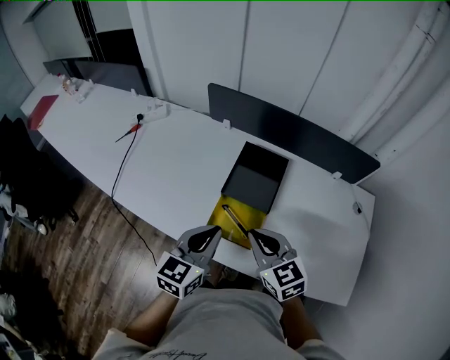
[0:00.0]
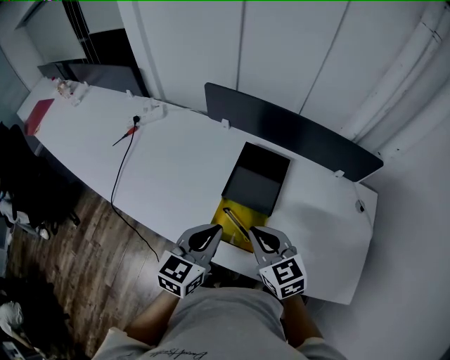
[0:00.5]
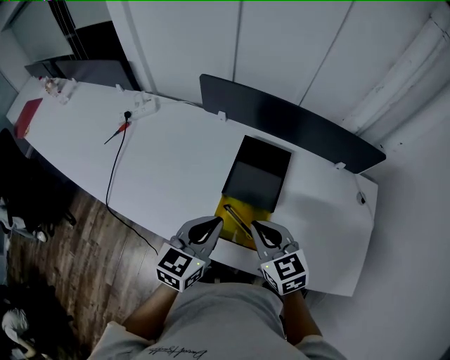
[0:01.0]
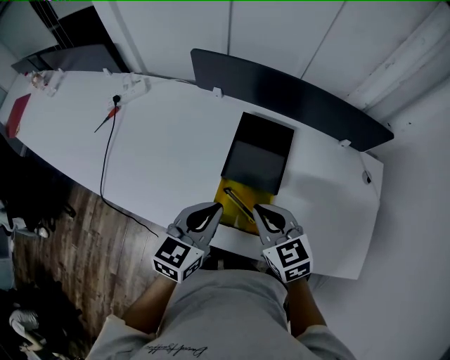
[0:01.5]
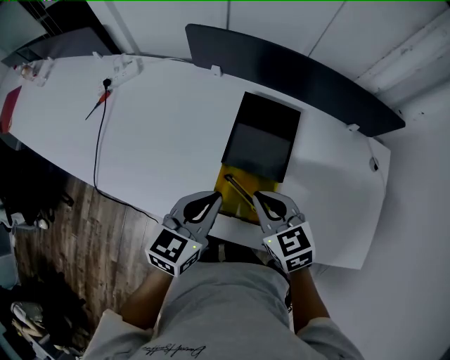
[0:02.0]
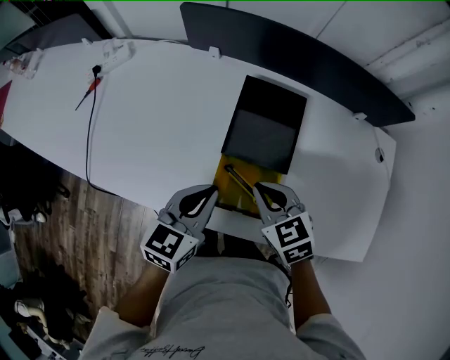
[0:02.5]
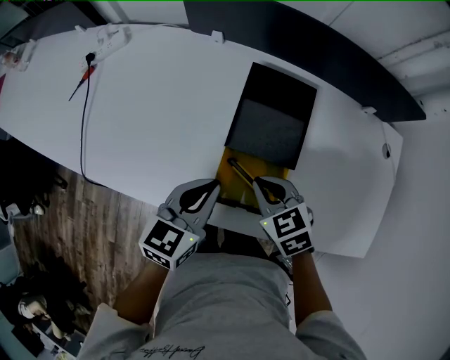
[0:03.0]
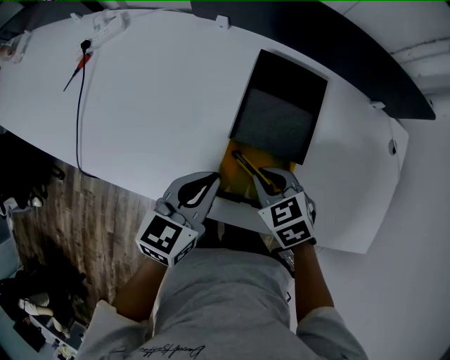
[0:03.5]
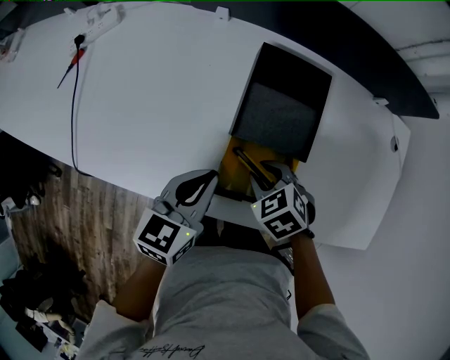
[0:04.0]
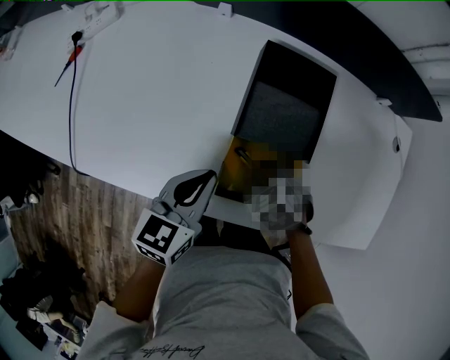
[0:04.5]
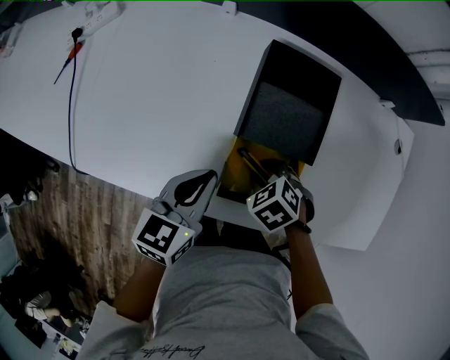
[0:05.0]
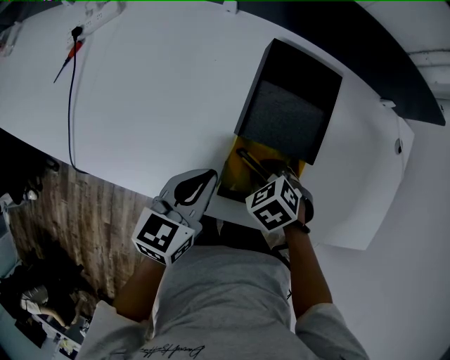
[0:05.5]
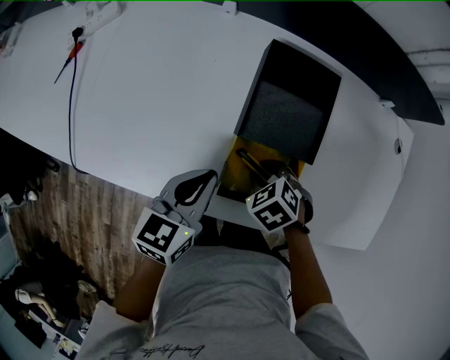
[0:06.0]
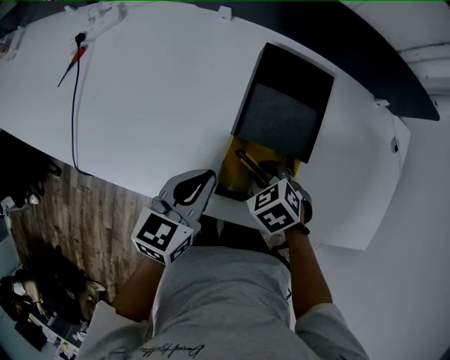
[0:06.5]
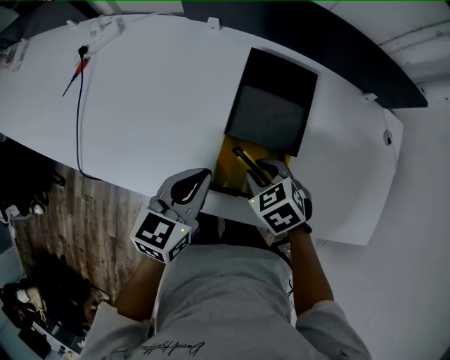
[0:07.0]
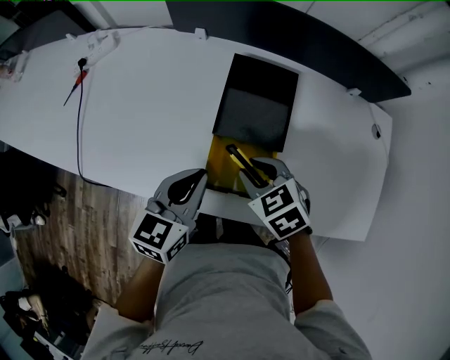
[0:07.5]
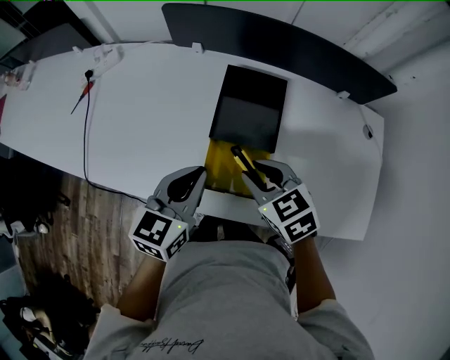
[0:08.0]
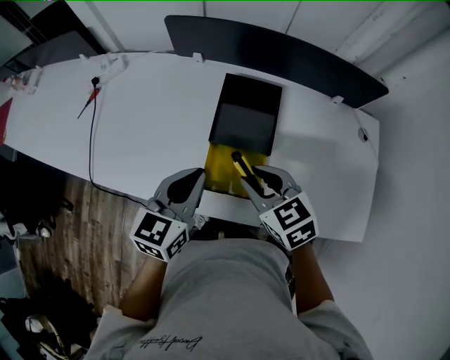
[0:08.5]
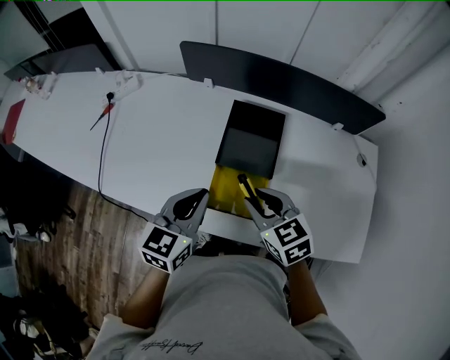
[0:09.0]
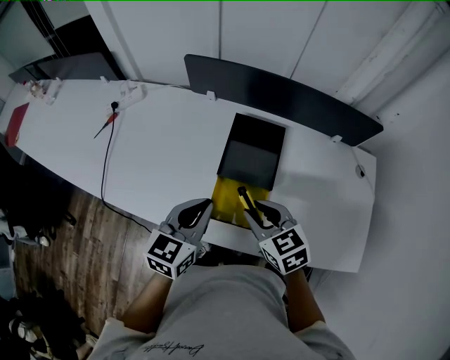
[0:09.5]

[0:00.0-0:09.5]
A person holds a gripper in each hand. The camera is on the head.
0:00.0 to 0:02.0: The left gripper heads forward and downward, covering approximately 10 cm; the right gripper is displaced downward and forward by some 10 cm.
0:02.0 to 0:04.0: The left gripper moves downward, about 10 cm; the right gripper goes about 15 cm downward, swivels roughly 30 degrees, and opens its fingers.
0:04.0 to 0:05.5: The grippers move only a little.
0:05.5 to 0:07.5: The left gripper heads upward, covering roughly 5 cm. The right gripper travels upward by some 15 cm, and swivels roughly 20 degrees.
0:07.5 to 0:09.5: The two grippers go approximately 10 cm upward.

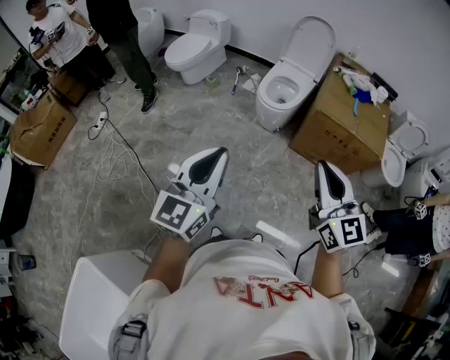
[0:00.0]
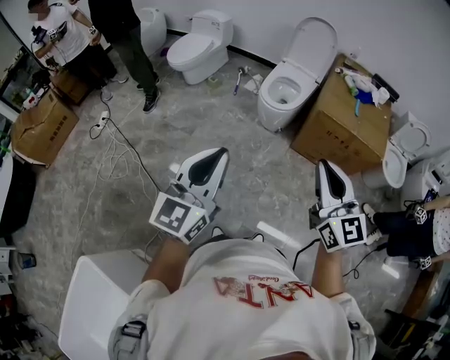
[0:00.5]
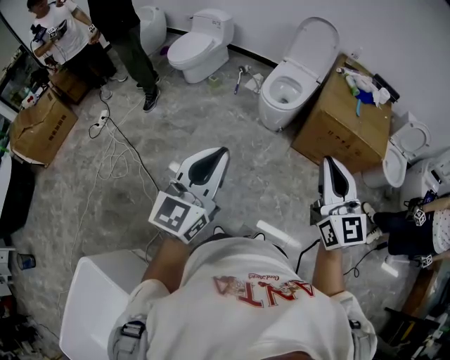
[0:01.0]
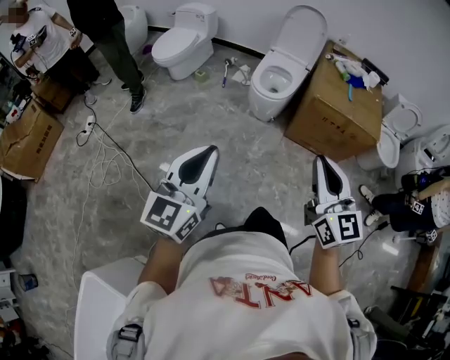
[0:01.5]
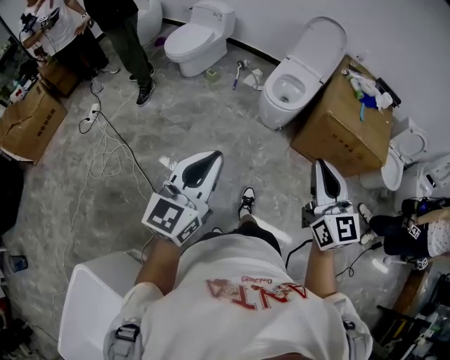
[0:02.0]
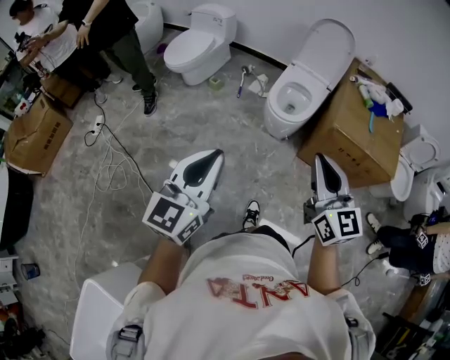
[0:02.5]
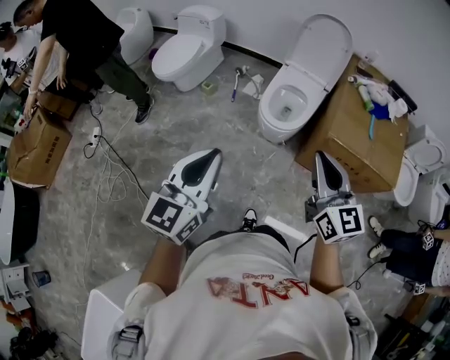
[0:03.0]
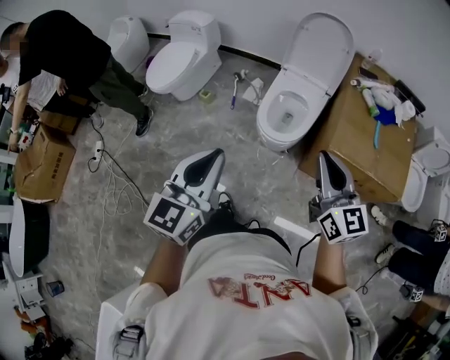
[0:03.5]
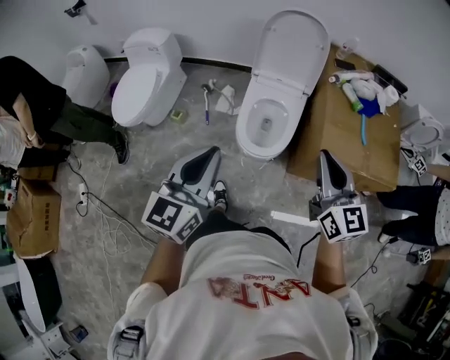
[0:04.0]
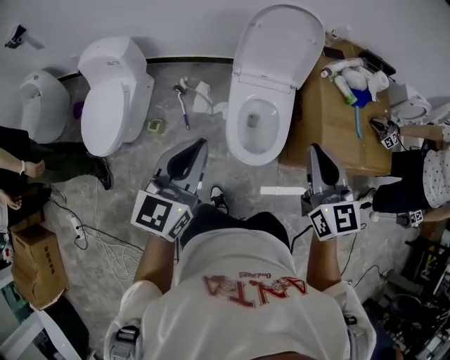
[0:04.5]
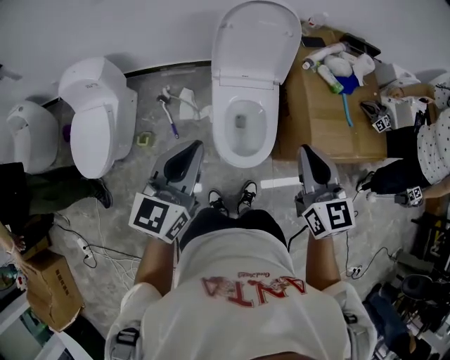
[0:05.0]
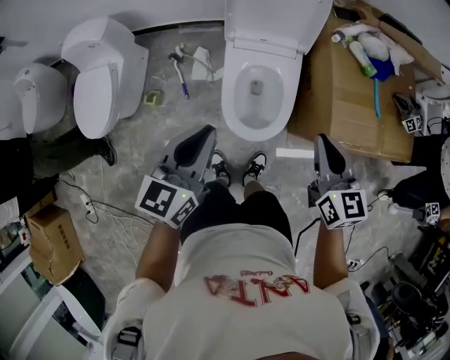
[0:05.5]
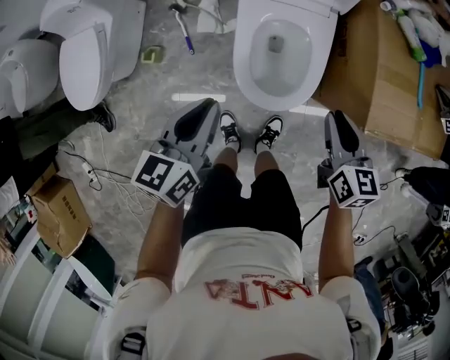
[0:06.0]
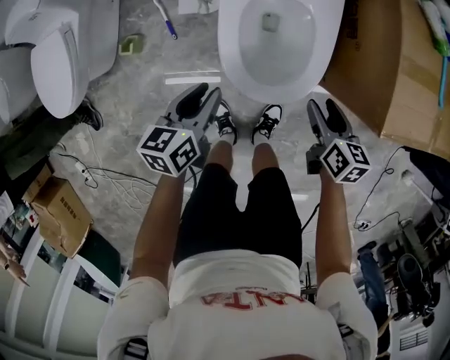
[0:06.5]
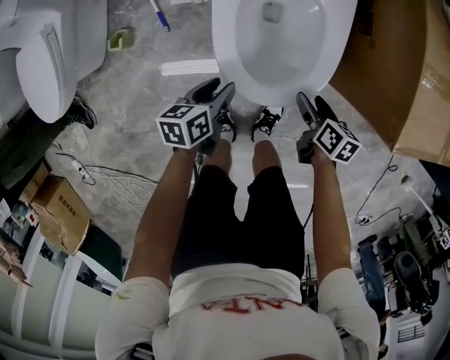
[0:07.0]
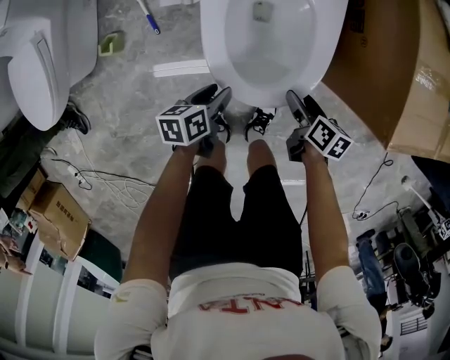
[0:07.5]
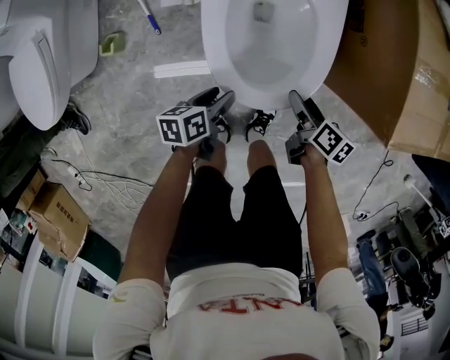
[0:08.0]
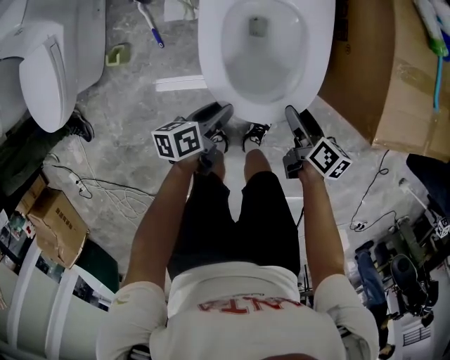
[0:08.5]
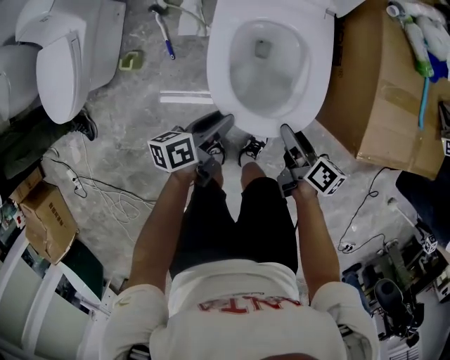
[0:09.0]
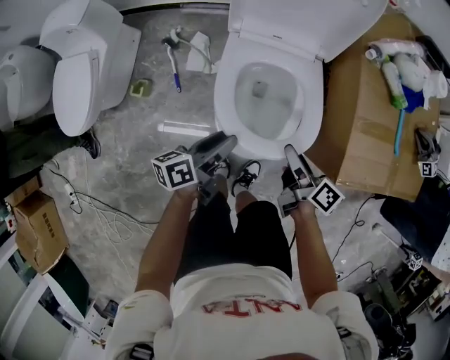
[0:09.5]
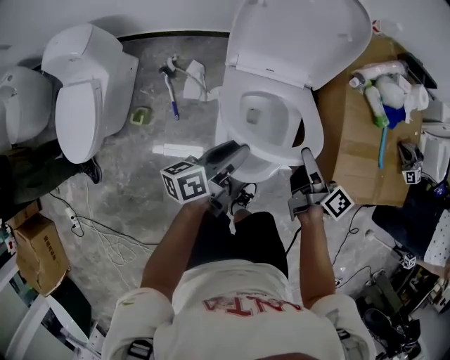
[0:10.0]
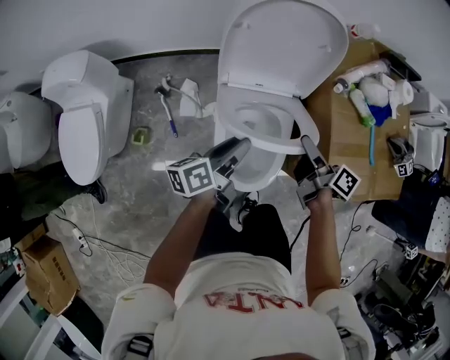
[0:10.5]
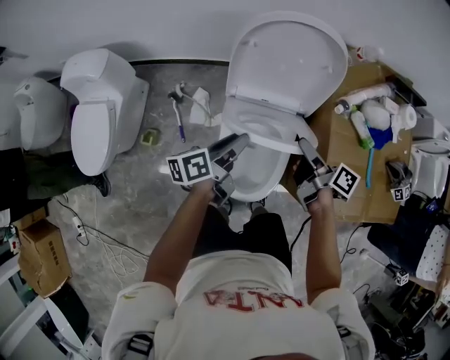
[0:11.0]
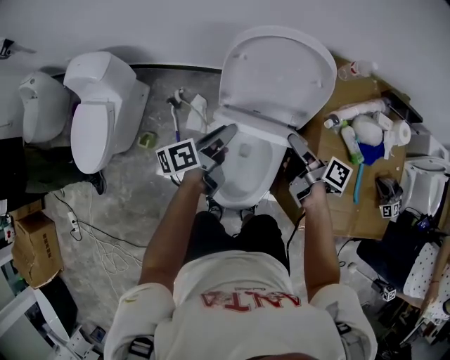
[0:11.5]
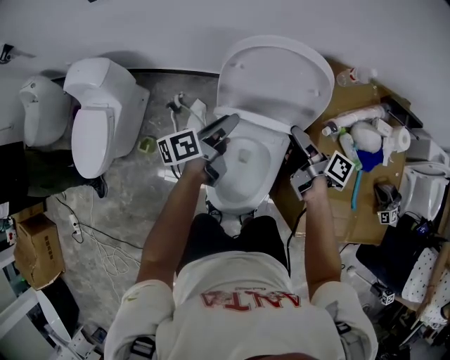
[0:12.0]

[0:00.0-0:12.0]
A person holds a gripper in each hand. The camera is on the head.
0:00.0 to 0:02.0: The left gripper travels to the left by some 10 cm. The right gripper shifts roughly 10 cm to the left and forward.
0:02.0 to 0:04.0: Both grippers are carried forward, some 50 cm.
0:04.0 to 0:06.0: The two grippers go roughly 35 cm downward and forward. The left gripper turns by some 30 degrees, while the right gripper swivels some 40 degrees.
0:06.0 to 0:08.0: The two grippers go some 35 cm downward. The right gripper rolls clockwise, seen from behind, by about 40 degrees, and opens. The left gripper rotates some 40 degrees, and opens up.
0:08.0 to 0:10.0: The grippers both shift upward and forward by some 35 cm. The right gripper points its fingers approximately 30 degrees further upward. The left gripper points its fingers some 30 degrees further upward.
0:10.0 to 0:12.0: The right gripper moves forward, about 20 cm. Meanwhile the left gripper goes approximately 20 cm forward and upward.

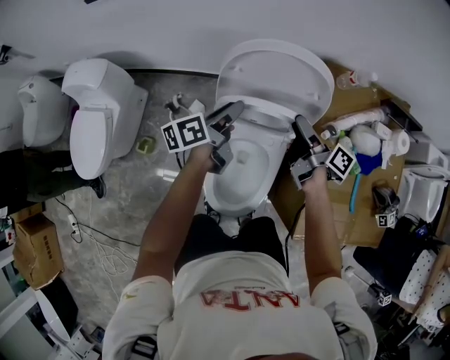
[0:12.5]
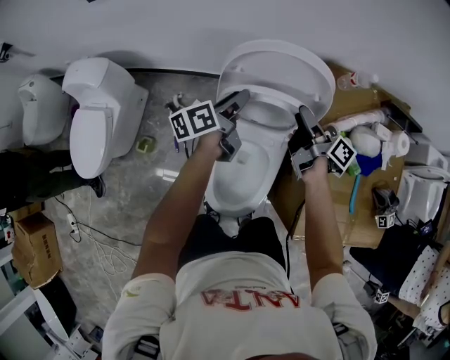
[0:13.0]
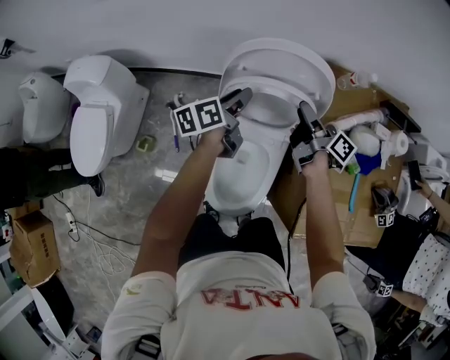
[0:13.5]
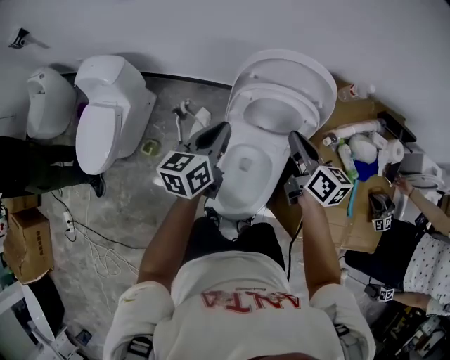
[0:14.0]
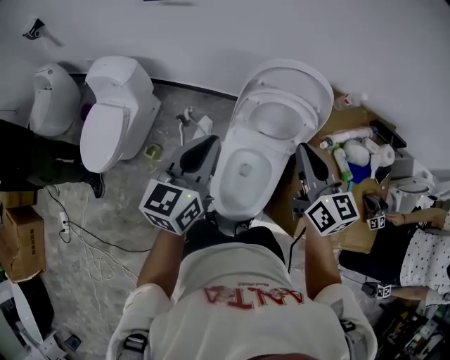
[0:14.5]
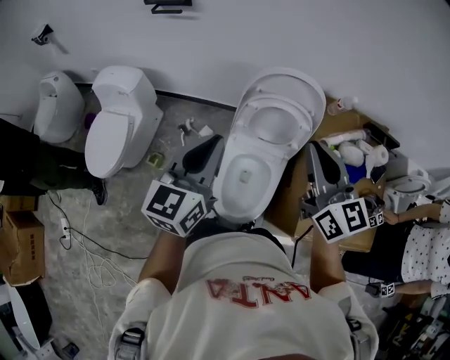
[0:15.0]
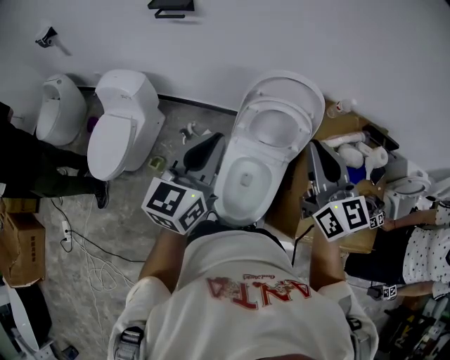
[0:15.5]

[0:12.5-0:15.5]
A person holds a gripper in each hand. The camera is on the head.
0:12.5 to 0:14.0: The left gripper moves backward, upward and to the left, roughly 15 cm, swivels roughly 30 degrees, and closes. Meanwhile the right gripper is displaced upward, backward and to the left by roughly 10 cm, rotates around the line of its fingers by approximately 40 degrees, counterclockwise from behind, and closes its fingers.
0:14.0 to 0:15.5: The grippers both shift upward and backward by about 25 cm. The right gripper turns by roughly 40 degrees; the left gripper rotates some 20 degrees.

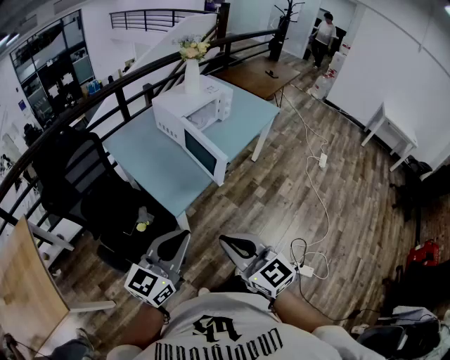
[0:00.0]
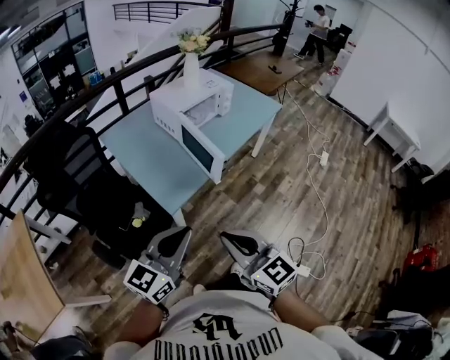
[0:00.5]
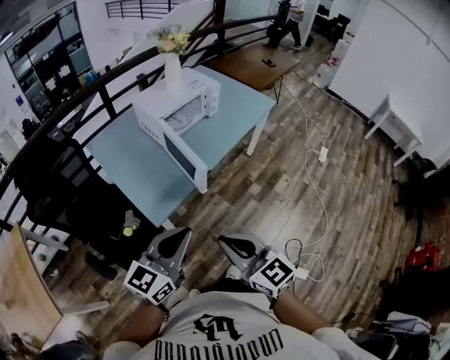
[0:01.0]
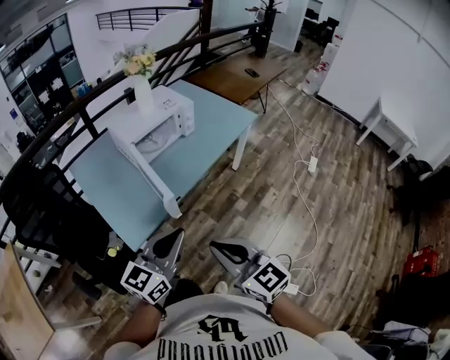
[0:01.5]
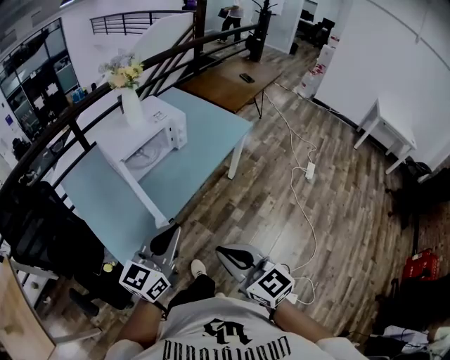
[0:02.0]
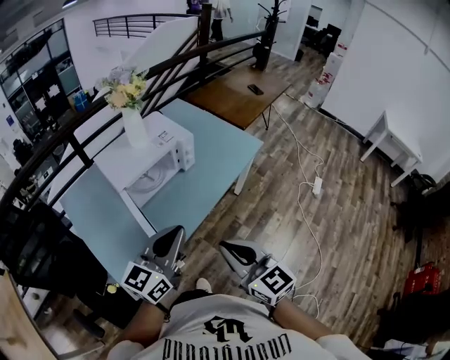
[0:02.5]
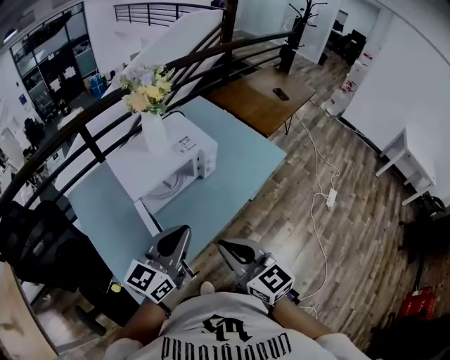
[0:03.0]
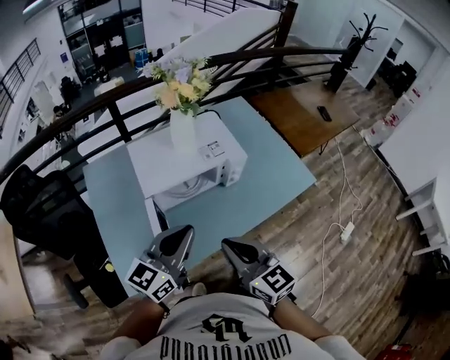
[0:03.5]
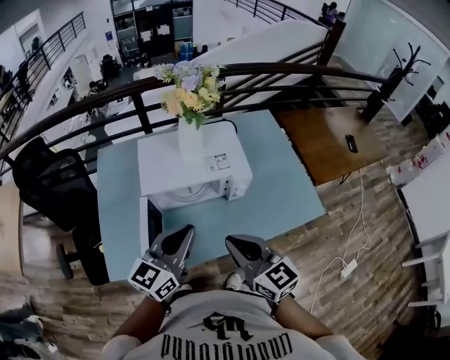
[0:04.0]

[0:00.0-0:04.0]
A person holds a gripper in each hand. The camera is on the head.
0:00.0 to 0:02.0: The left gripper heads forward and to the right, covering roughly 35 cm, while the right gripper shifts about 35 cm to the right and forward.
0:02.0 to 0:04.0: The right gripper moves approximately 40 cm, and turns by approximately 30 degrees; the left gripper shifts by approximately 35 cm, and turns by some 30 degrees.
